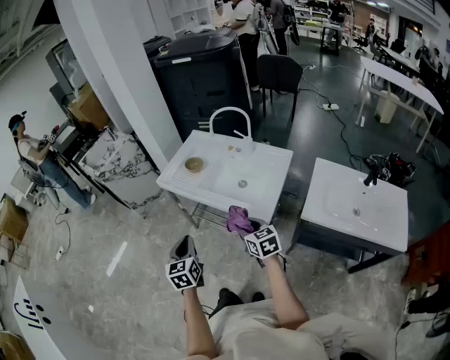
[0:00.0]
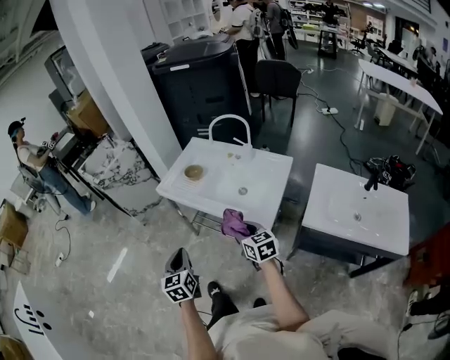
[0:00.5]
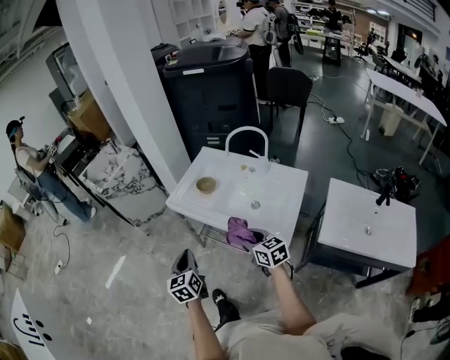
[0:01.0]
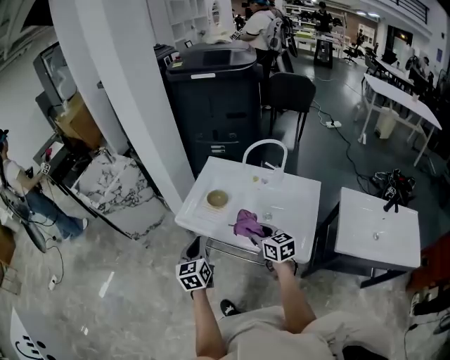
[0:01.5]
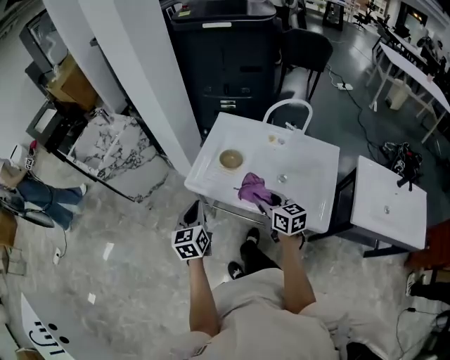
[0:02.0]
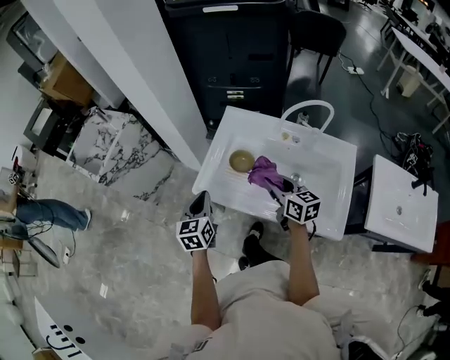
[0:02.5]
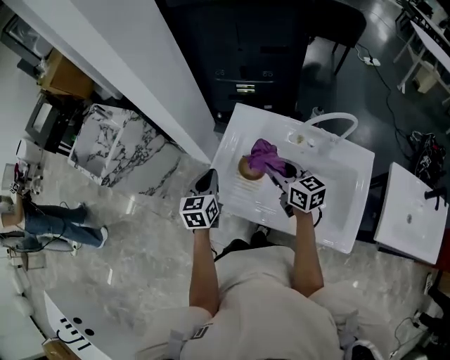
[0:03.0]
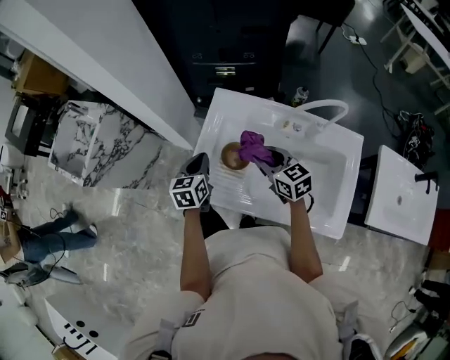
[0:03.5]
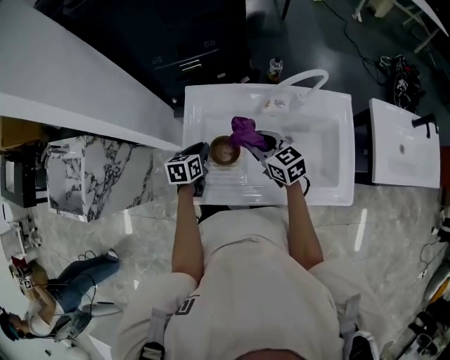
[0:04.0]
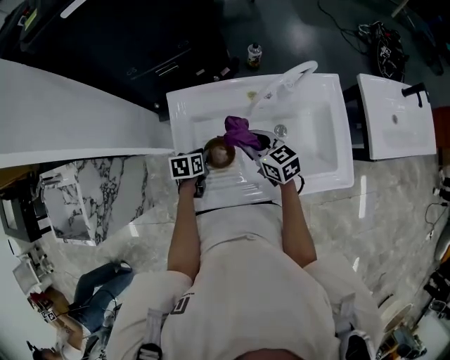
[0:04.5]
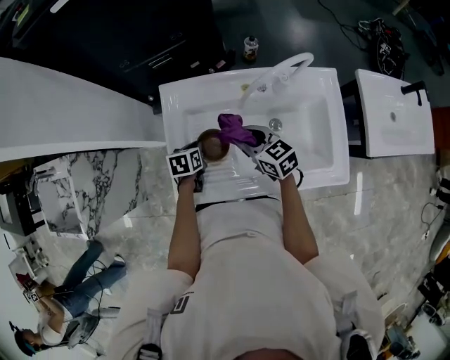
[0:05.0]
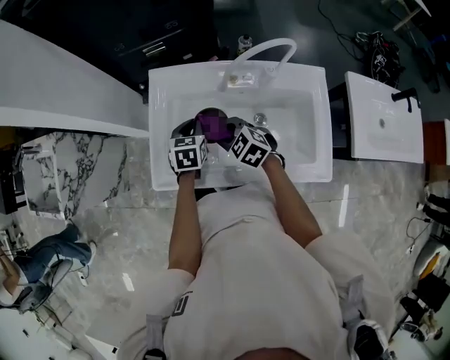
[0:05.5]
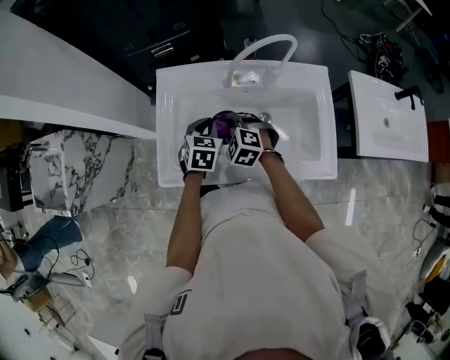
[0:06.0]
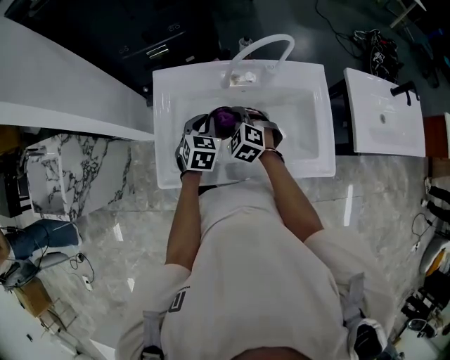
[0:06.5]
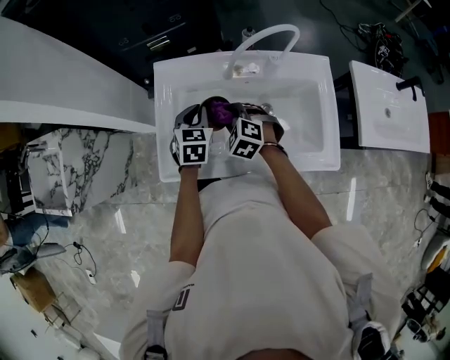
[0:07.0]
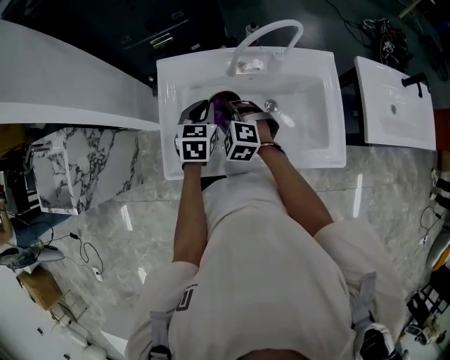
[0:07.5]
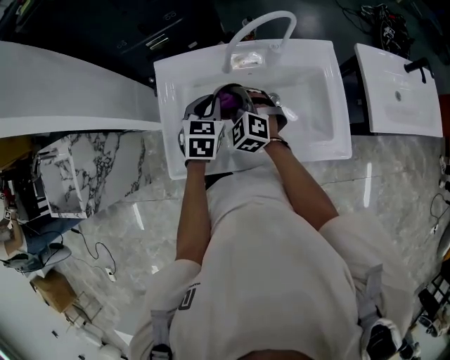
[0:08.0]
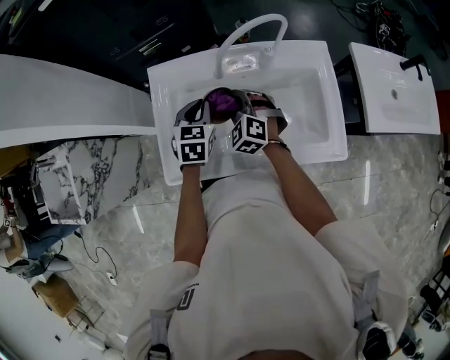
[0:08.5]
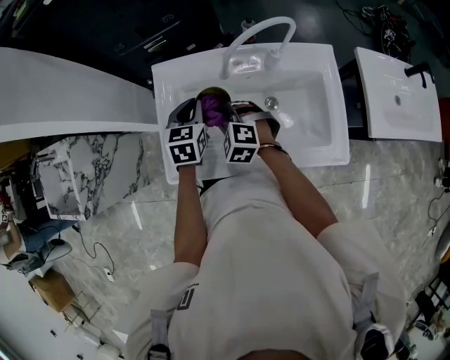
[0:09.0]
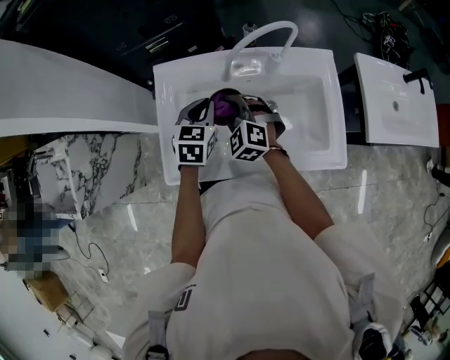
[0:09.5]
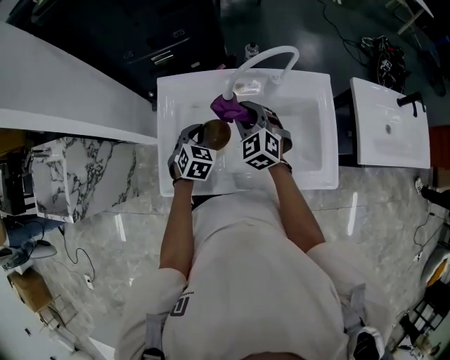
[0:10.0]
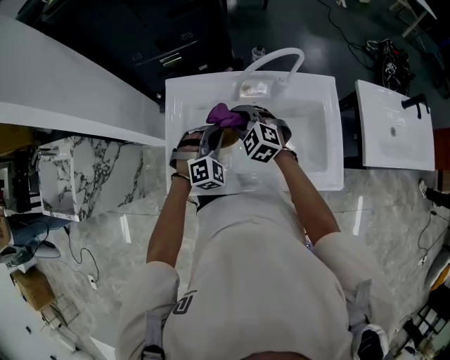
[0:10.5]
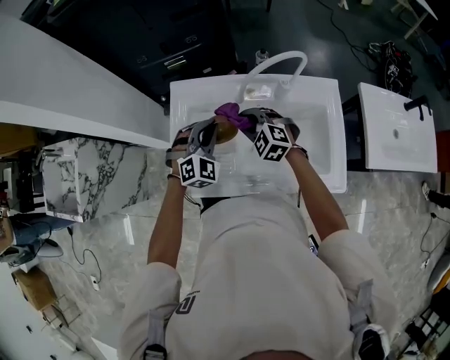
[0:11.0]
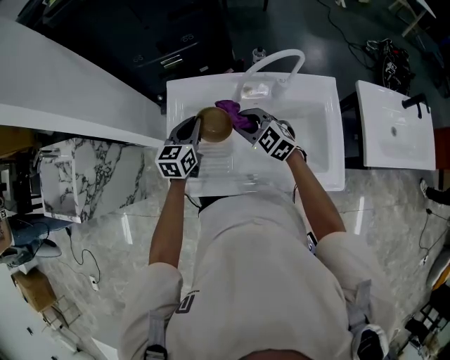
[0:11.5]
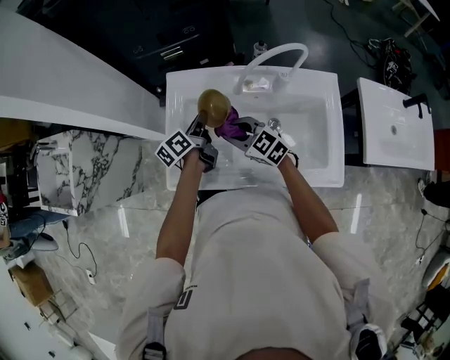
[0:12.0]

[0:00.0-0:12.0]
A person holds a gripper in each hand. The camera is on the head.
0:00.0 to 0:02.0: Both grippers move forward, about 25 cm.
0:02.0 to 0:04.0: The right gripper travels forward by roughly 20 cm. Meanwhile the left gripper goes approximately 30 cm forward and downward, and swivels about 40 degrees.
0:04.0 to 0:06.0: The right gripper travels downward by about 5 cm, and rolls counterclockwise, seen from behind, by about 40 degrees. Meanwhile the left gripper travels to the right by about 10 cm, and rotates some 30 degrees.
0:06.0 to 0:08.0: The left gripper is displaced upward by some 5 cm. The right gripper moves roughly 5 cm, and swivels some 20 degrees.
0:08.0 to 0:10.0: The right gripper goes about 5 cm to the right. The left gripper heads downward, covering some 5 cm.
0:10.0 to 0:12.0: The left gripper changes place by roughly 5 cm, and rolls counterclockwise, seen from behind, by approximately 80 degrees. Meanwhile the right gripper shifts about 10 cm to the left and backward, and turns by some 40 degrees.

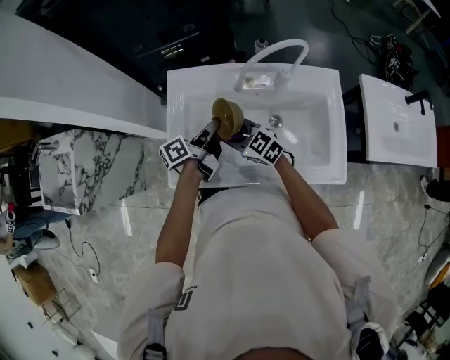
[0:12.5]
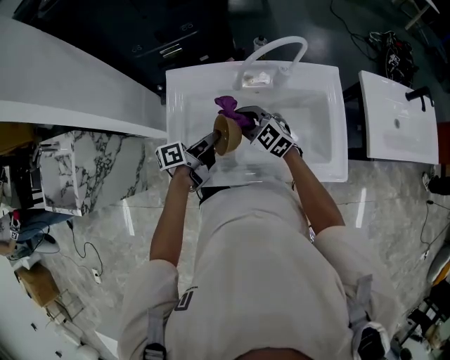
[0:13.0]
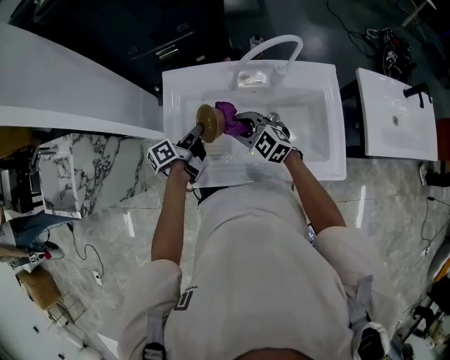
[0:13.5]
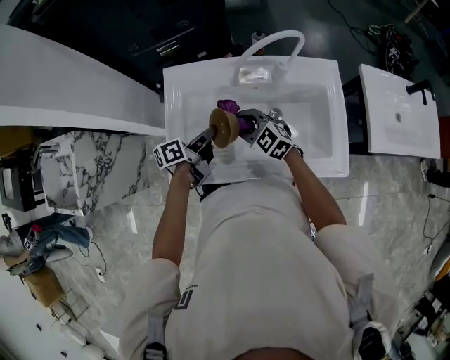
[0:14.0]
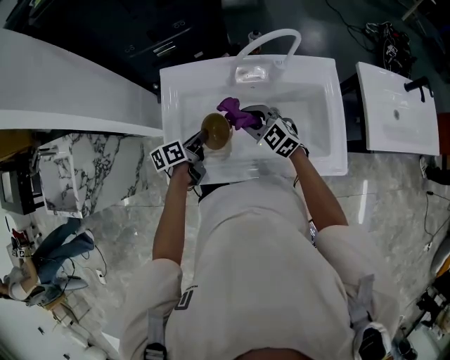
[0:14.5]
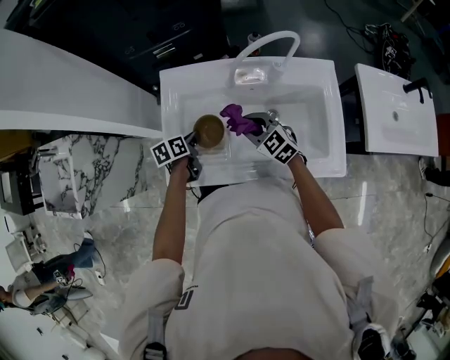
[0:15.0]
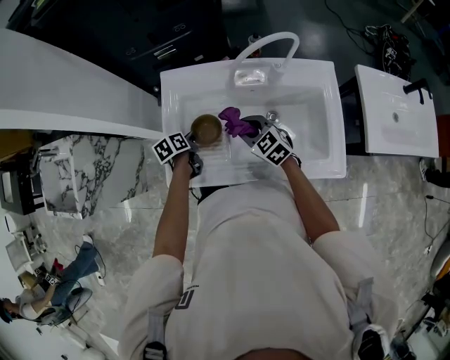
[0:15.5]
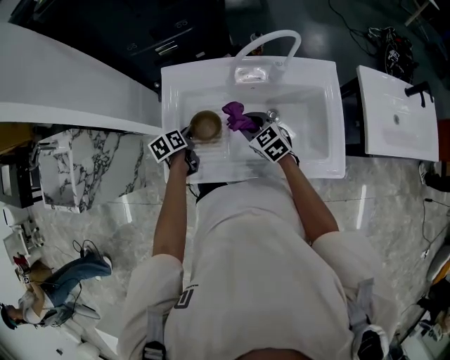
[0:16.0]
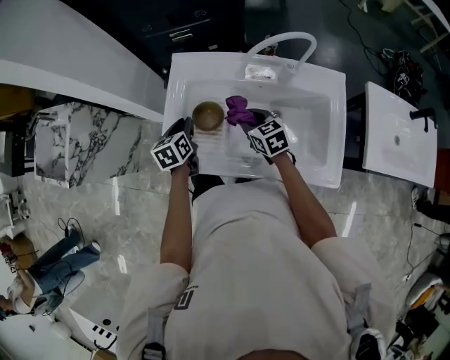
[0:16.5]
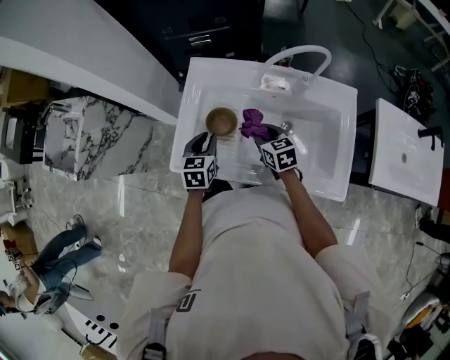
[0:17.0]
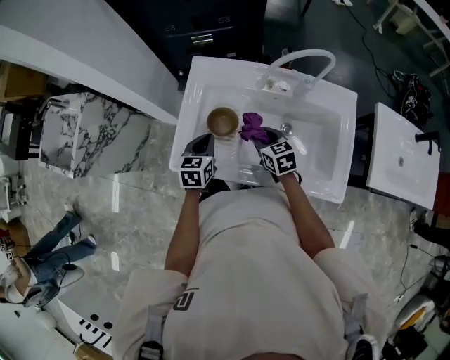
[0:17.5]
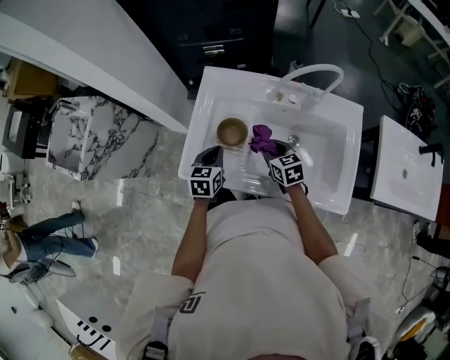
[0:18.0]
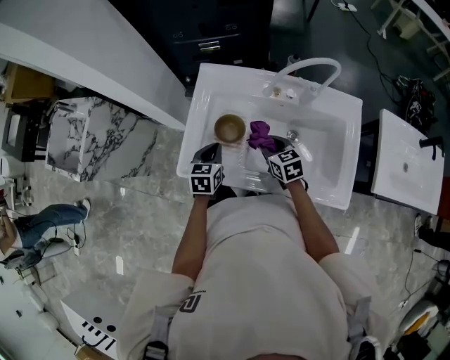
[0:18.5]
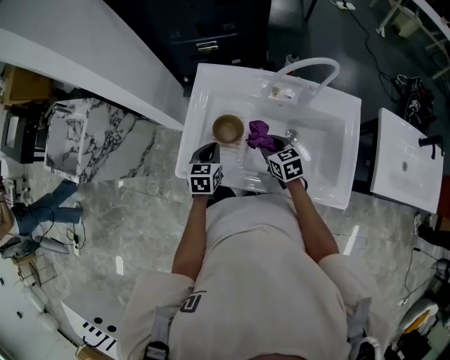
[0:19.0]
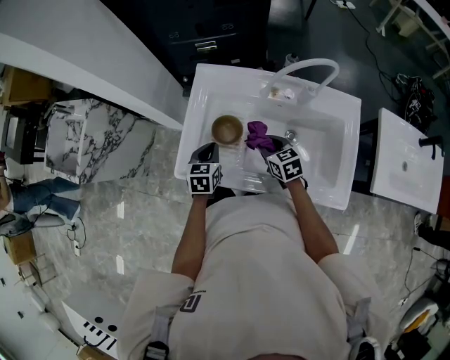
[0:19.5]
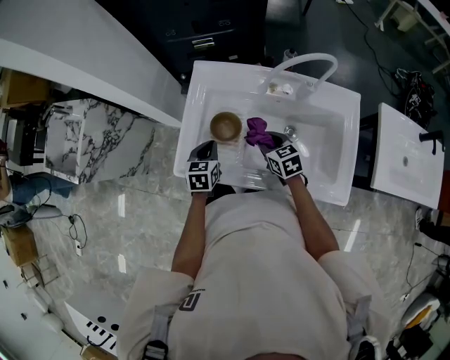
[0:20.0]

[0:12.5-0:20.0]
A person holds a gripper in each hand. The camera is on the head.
0:12.5 to 0:14.5: The left gripper heads downward, covering about 5 cm, and rotates about 30 degrees, while the right gripper moves to the right, roughly 5 cm.
0:14.5 to 0:16.5: The left gripper shifts roughly 5 cm to the left, travels downward and back again, roughly 5 cm each way, and rotates approximately 40 degrees. The right gripper rotates about 30 degrees.
0:16.5 to 0:18.0: The left gripper is displaced backward by roughly 5 cm, and closes up.
0:18.0 to 0:20.0: The grippers stay close to where they were, moving slightly.

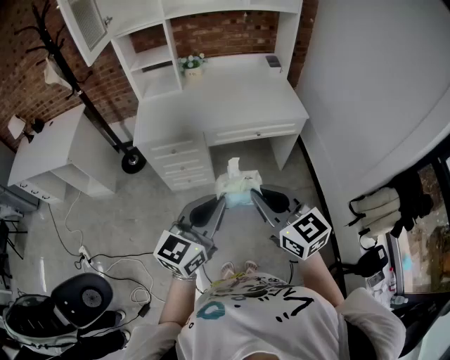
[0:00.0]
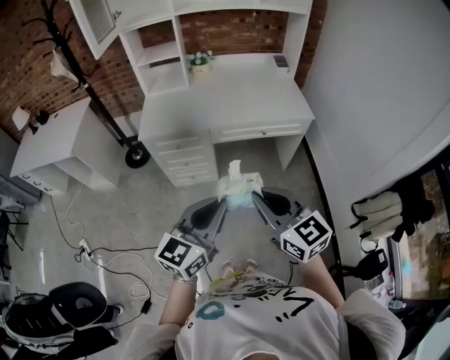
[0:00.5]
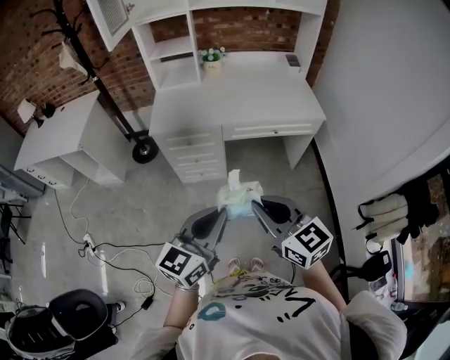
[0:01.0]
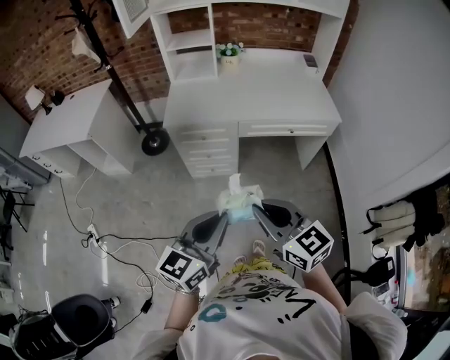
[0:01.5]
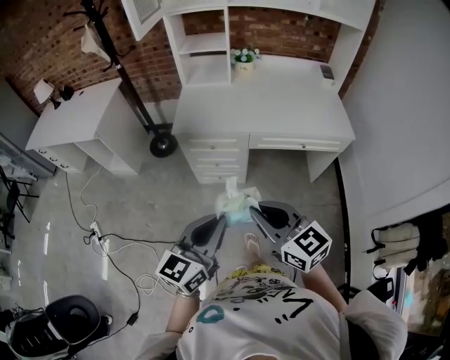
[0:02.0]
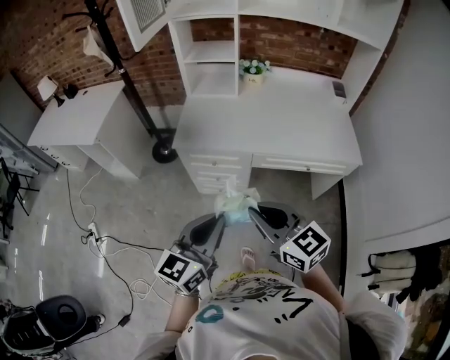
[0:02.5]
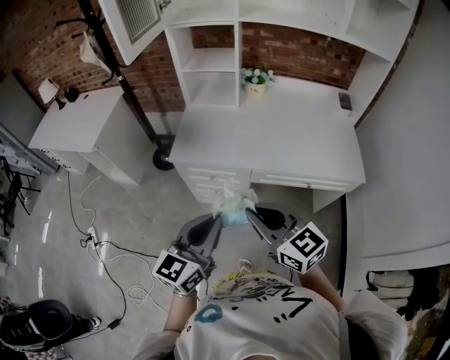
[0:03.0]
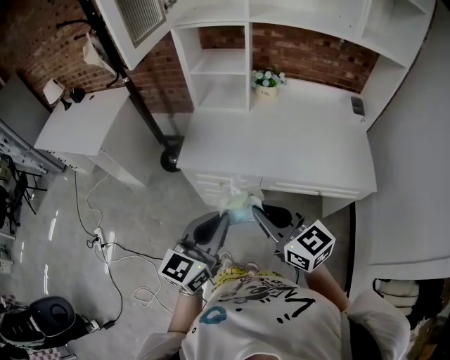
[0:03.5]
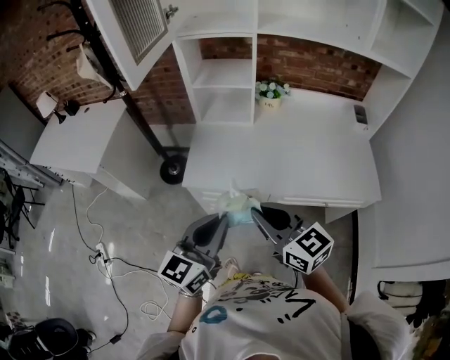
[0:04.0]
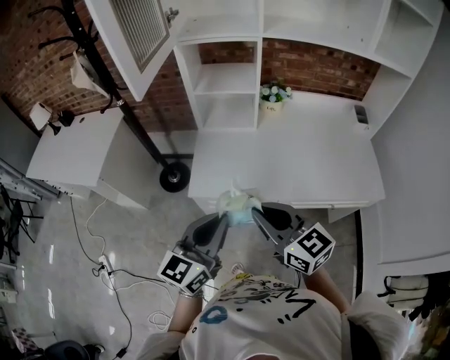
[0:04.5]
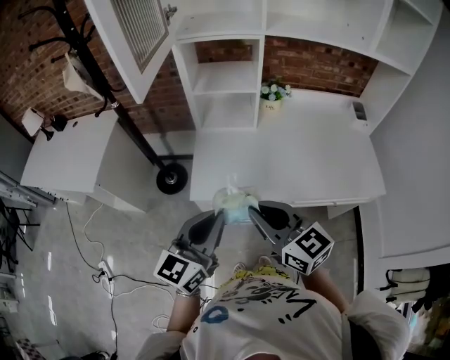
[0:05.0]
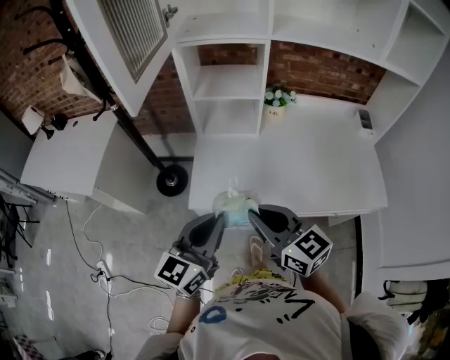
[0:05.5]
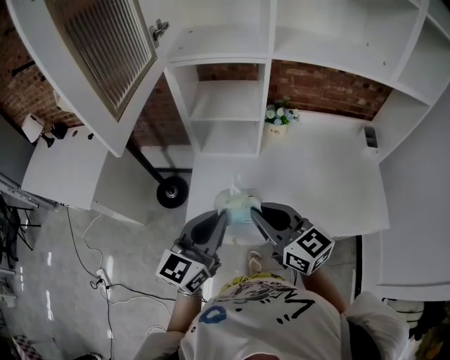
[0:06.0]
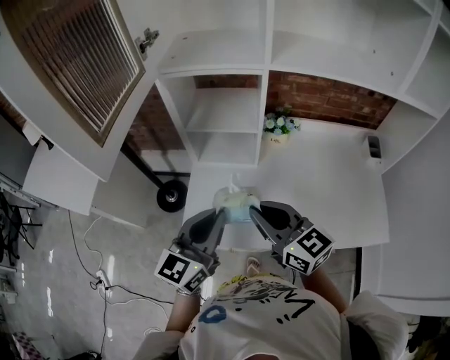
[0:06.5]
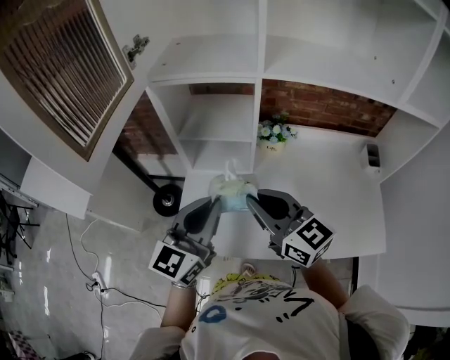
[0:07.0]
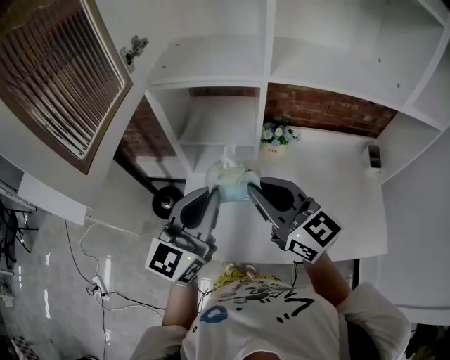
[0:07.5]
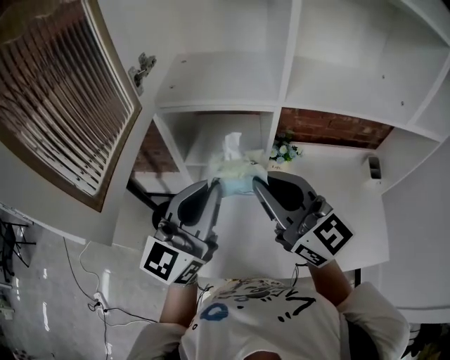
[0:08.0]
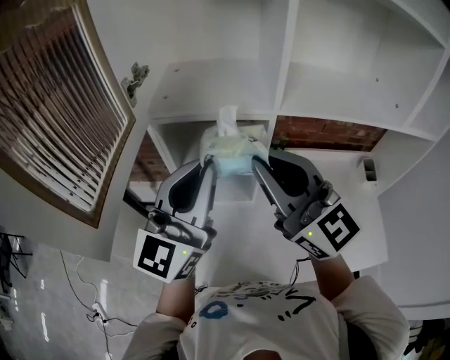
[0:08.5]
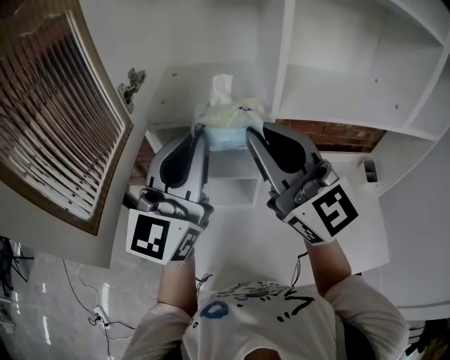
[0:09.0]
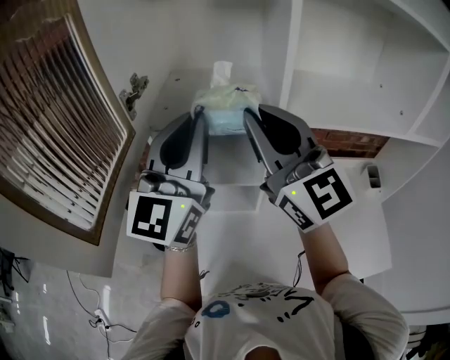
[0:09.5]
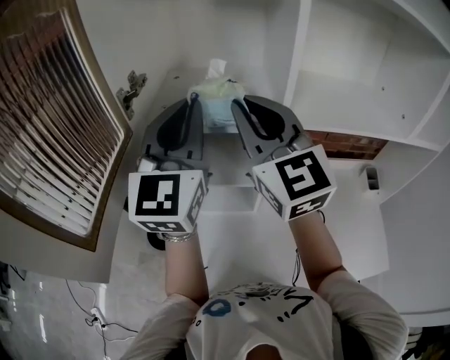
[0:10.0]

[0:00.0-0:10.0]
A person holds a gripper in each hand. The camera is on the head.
0:00.0 to 0:02.0: The two grippers go about 15 cm to the left.
0:02.0 to 0:04.0: Both grippers move forward, approximately 30 cm.
0:04.0 to 0:06.0: Both grippers move forward, about 20 cm.
0:06.0 to 0:08.0: The grippers both shift forward and upward by roughly 25 cm. The right gripper rotates some 20 degrees.
0:08.0 to 0:10.0: The grippers both shift forward and upward by approximately 20 cm. The right gripper rotates some 30 degrees; the left gripper changes its angle by some 30 degrees.
